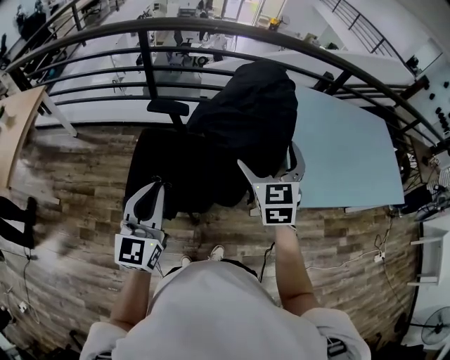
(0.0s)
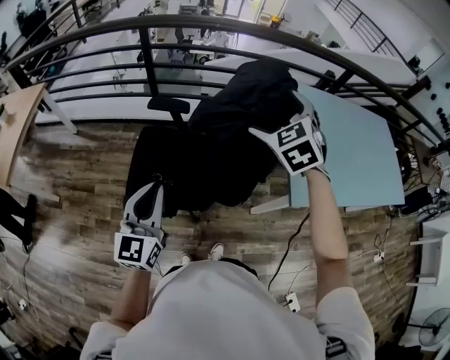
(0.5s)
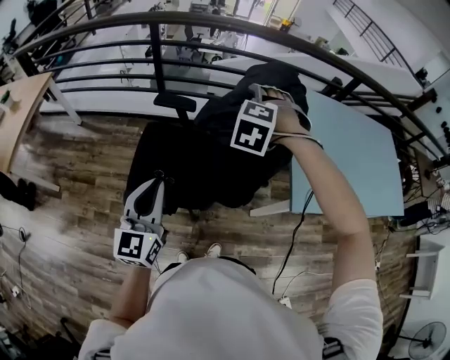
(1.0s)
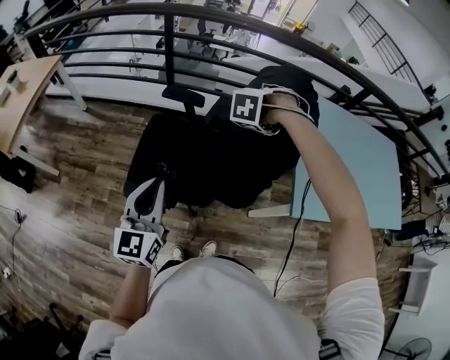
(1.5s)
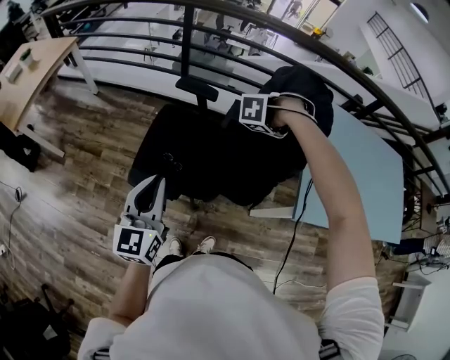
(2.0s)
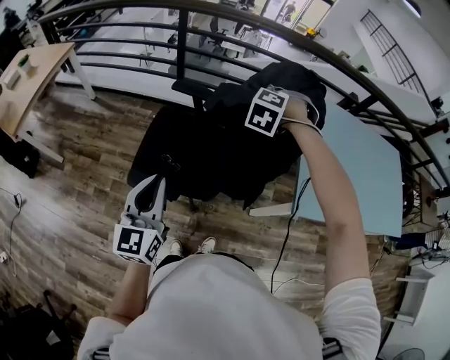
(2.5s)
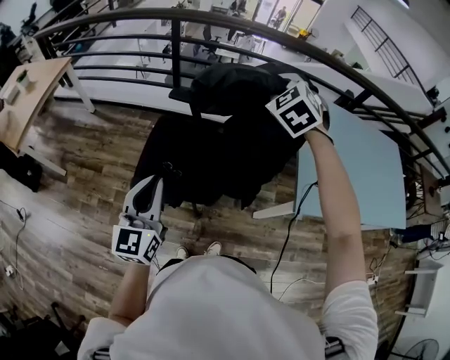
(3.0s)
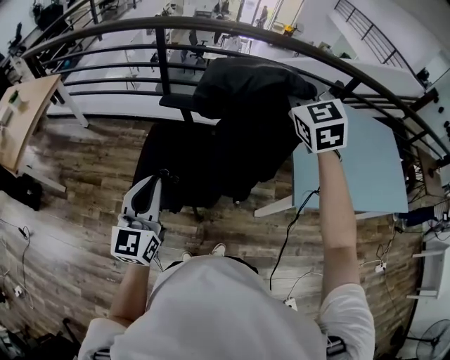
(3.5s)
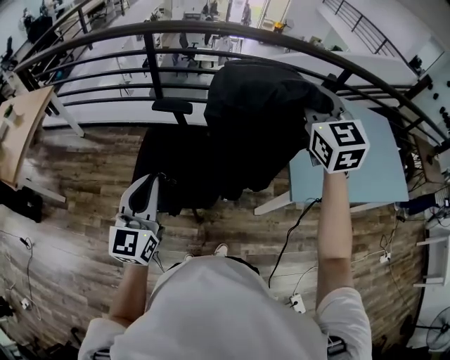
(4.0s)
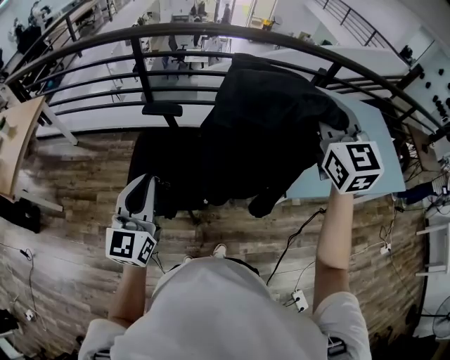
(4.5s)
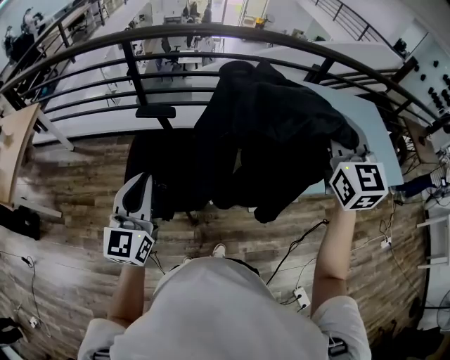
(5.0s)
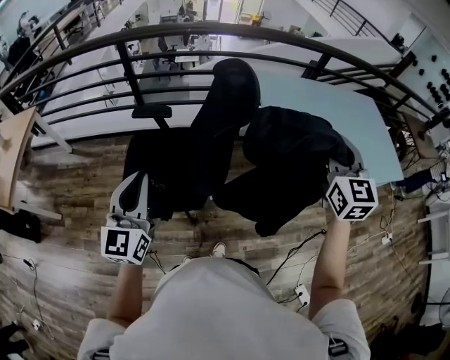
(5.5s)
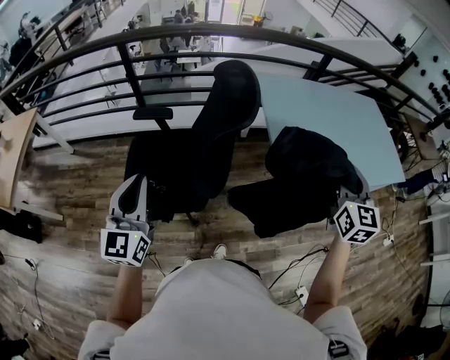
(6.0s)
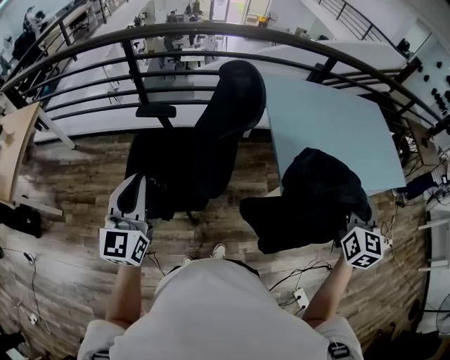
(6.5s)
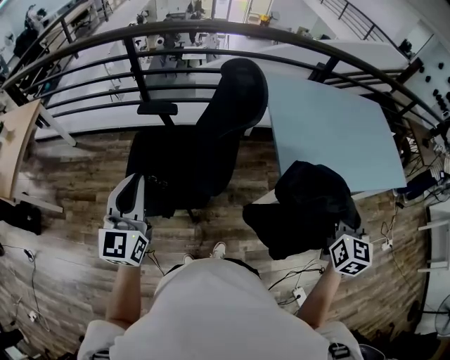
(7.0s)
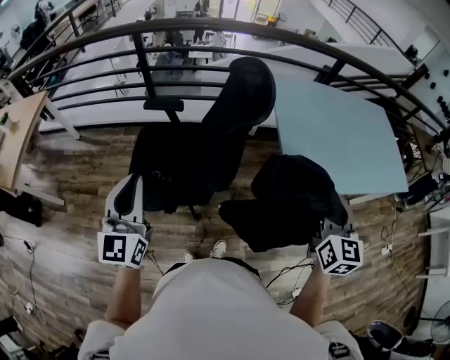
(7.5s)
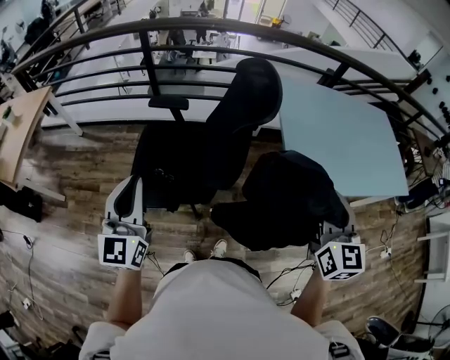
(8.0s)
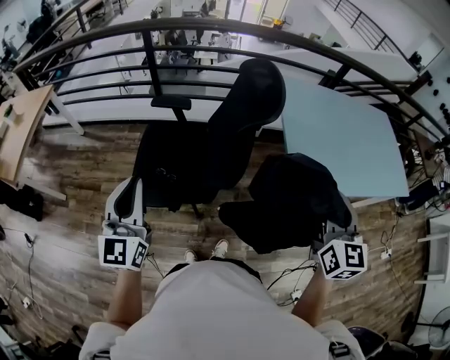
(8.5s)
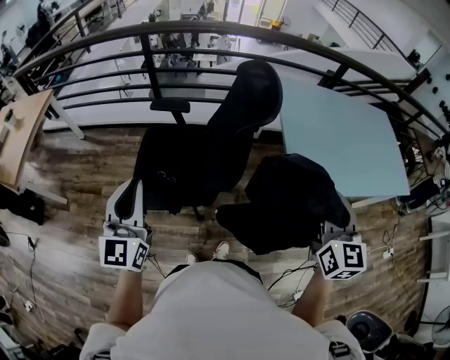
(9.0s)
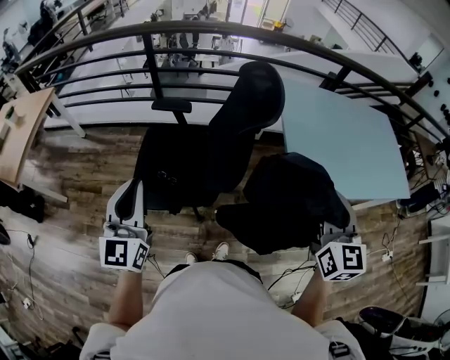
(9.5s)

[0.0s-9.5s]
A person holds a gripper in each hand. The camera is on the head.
0.0s to 2.0s: The right gripper ends up approximately 15 cm from where it was, tips its fingers downward by about 50 degrees, and closes.
2.0s to 4.0s: The right gripper shifts about 30 cm upward, angles its fingers upward, by approximately 60 degrees, and closes its fingers. Meanwhile the left gripper is displaced upward by approximately 5 cm.
4.0s to 5.5s: The right gripper is displaced to the right and backward by some 20 cm.
5.5s to 7.5s: The right gripper goes roughly 15 cm backward and downward, and travels to the right and back again, some 10 cm each way.
7.5s to 9.5s: The right gripper shifts by about 5 cm.

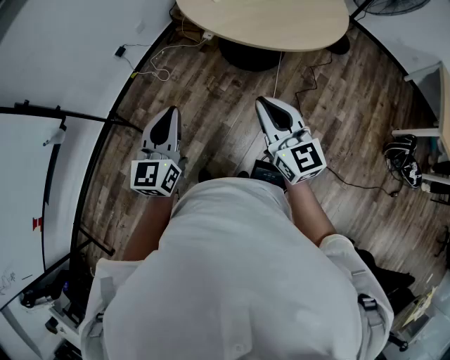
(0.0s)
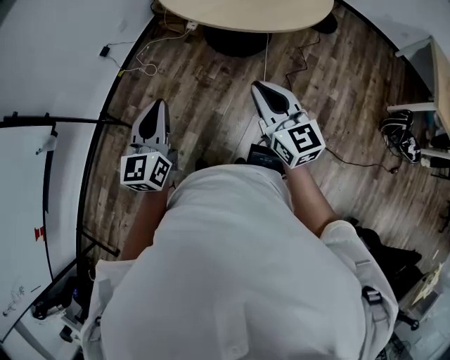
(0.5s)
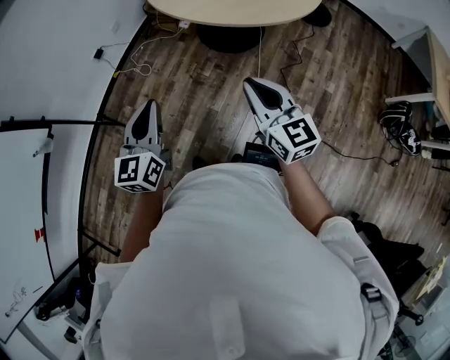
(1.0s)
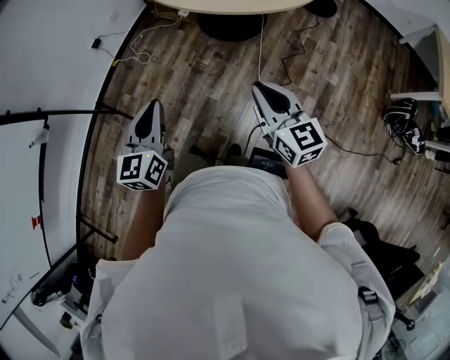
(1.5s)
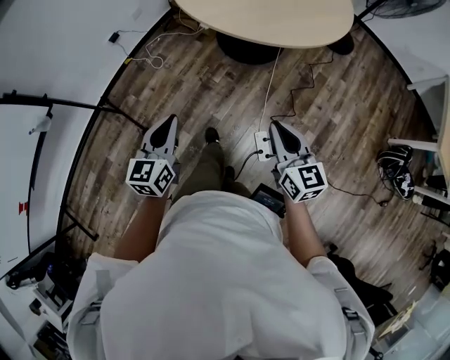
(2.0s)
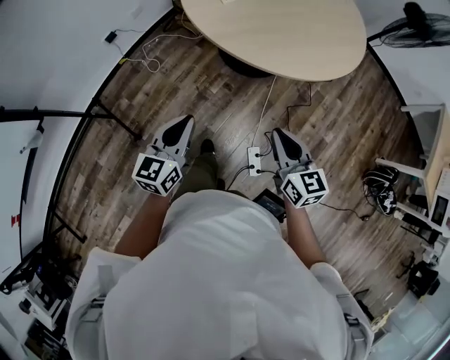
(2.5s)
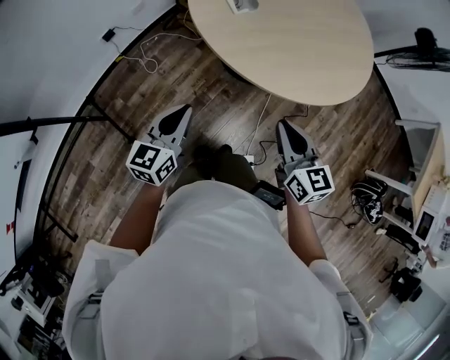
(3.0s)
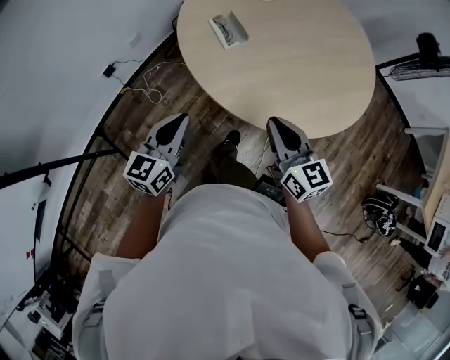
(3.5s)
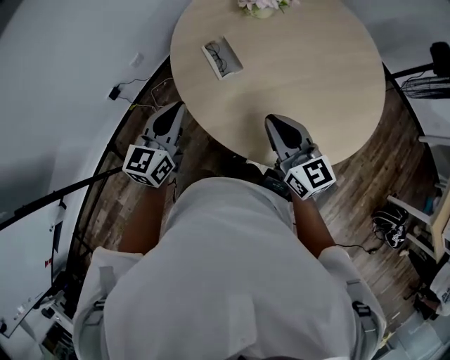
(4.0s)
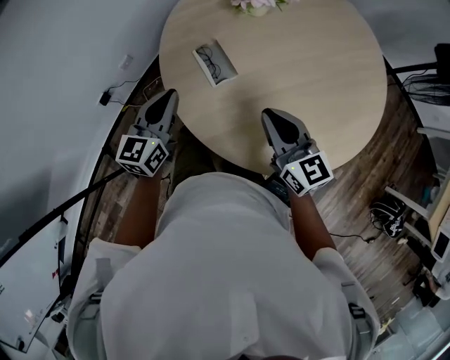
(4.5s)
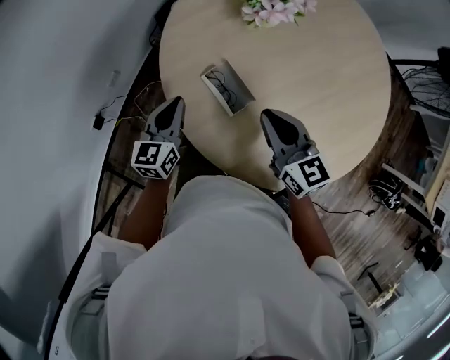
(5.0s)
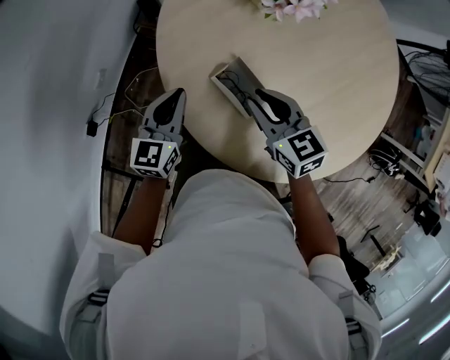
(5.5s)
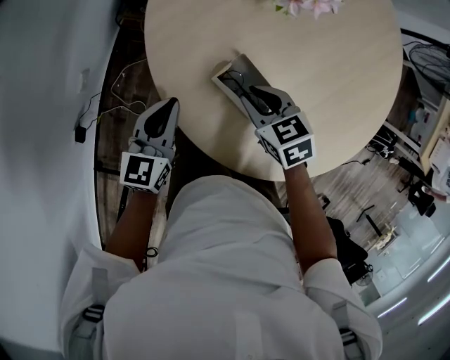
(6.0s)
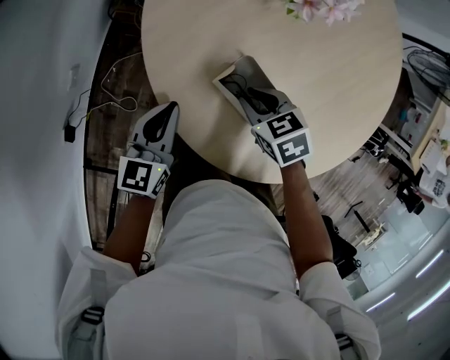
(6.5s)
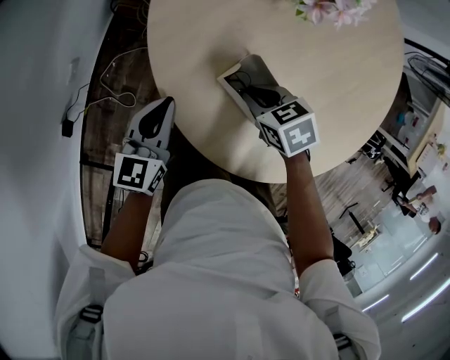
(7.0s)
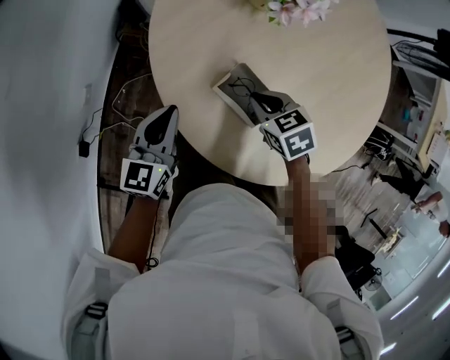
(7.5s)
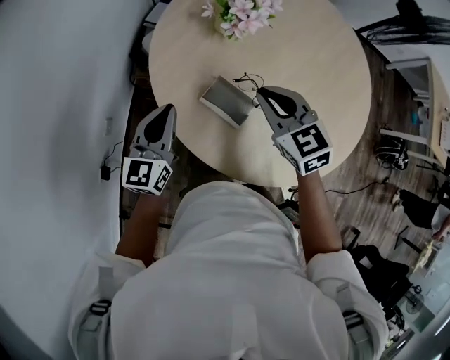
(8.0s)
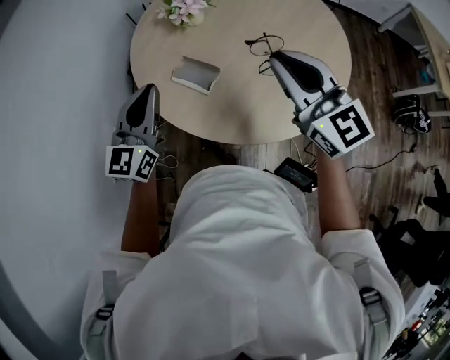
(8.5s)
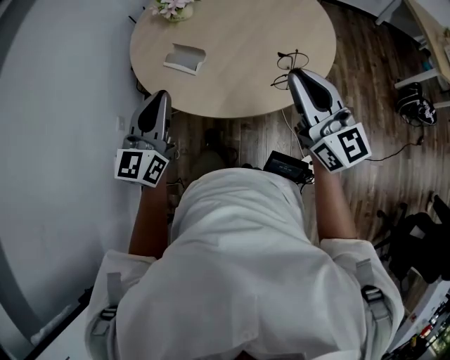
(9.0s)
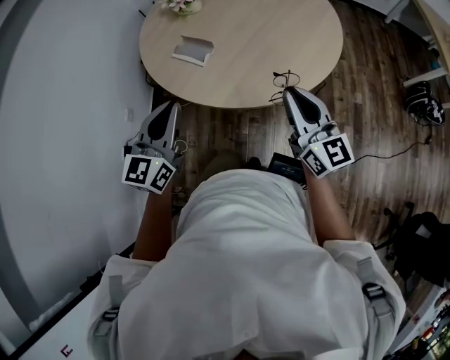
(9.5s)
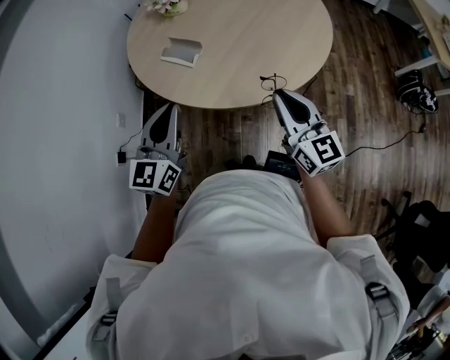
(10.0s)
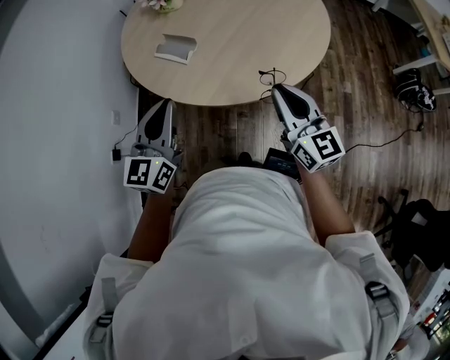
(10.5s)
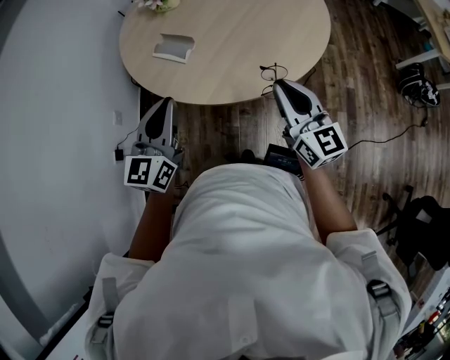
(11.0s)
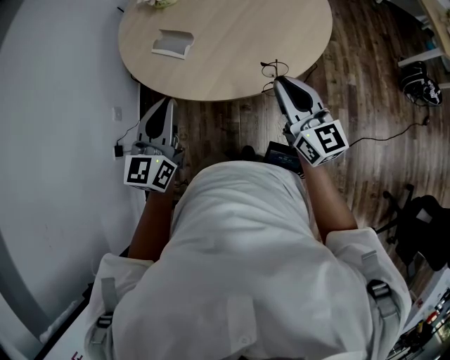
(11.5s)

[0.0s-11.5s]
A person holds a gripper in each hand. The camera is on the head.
0.0s to 2.0s: The left gripper travels downward and to the right by roughly 10 cm, while the right gripper moves to the right and downward, some 15 cm.
2.0s to 4.0s: The pair of grippers is taken forward, some 50 cm.
4.0s to 6.0s: The left gripper is displaced forward and downward by some 35 cm, and rotates some 20 degrees. Meanwhile the right gripper heads forward, downward and to the left, covering about 35 cm, and points its fingers roughly 50 degrees further downward.
6.0s to 7.5s: The grippers stay close to where they were, moving slightly.
7.5s to 9.5s: Both grippers move backward, upward and to the right, some 50 cm. The left gripper swivels roughly 30 degrees, while the right gripper points its fingers some 70 degrees further upward.
9.5s to 11.5s: The right gripper moves roughly 5 cm.

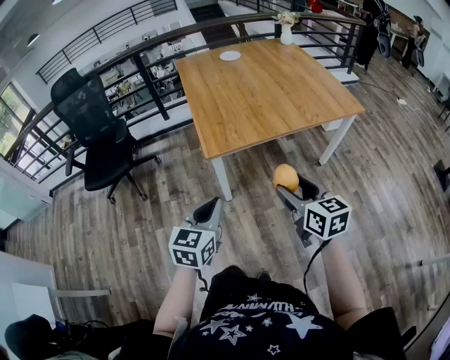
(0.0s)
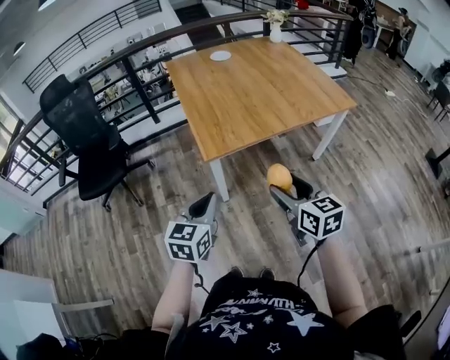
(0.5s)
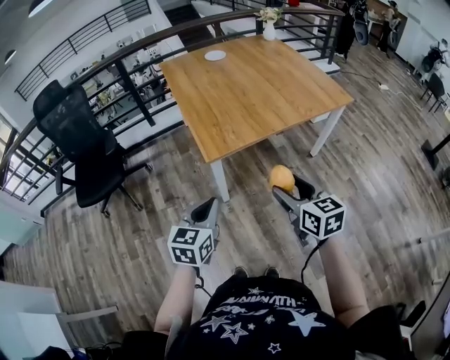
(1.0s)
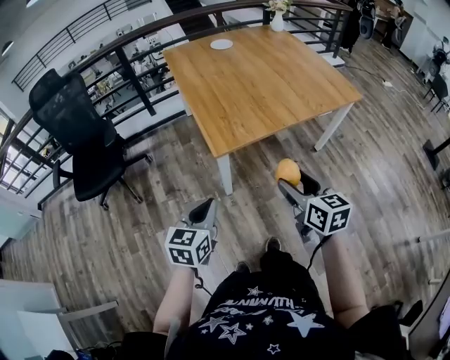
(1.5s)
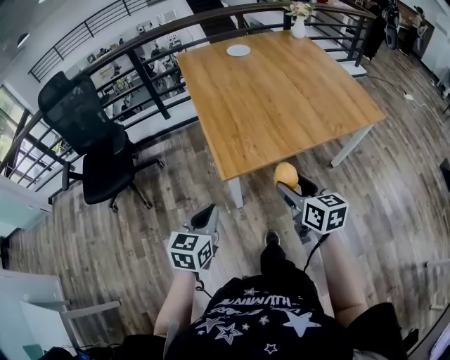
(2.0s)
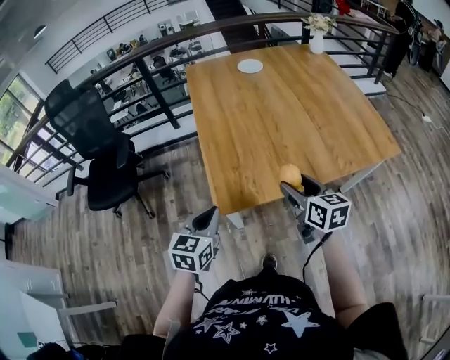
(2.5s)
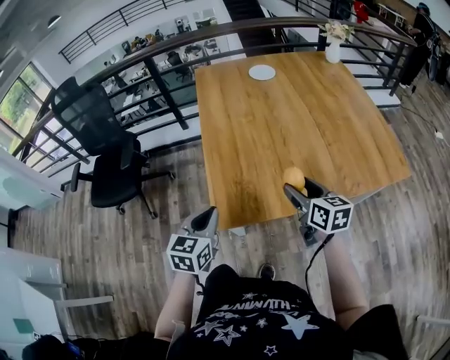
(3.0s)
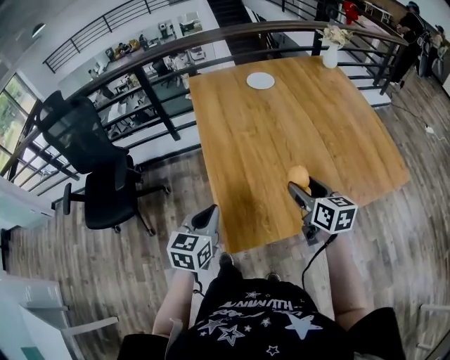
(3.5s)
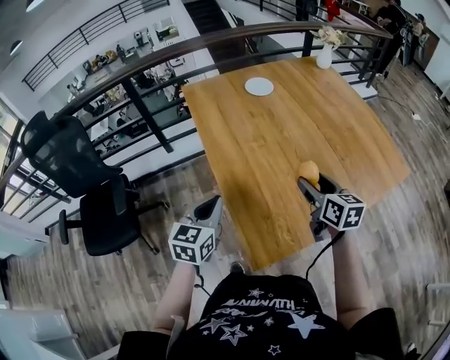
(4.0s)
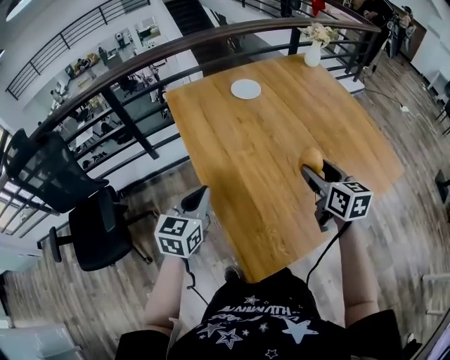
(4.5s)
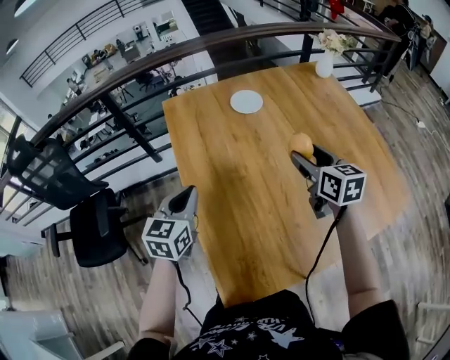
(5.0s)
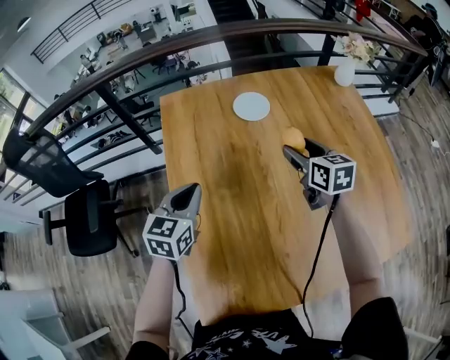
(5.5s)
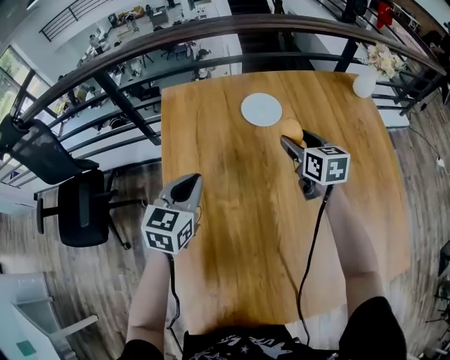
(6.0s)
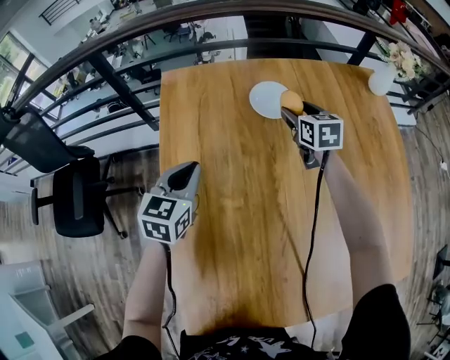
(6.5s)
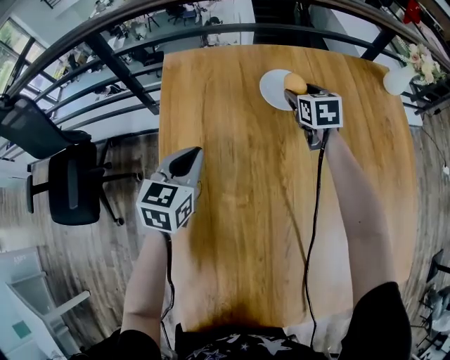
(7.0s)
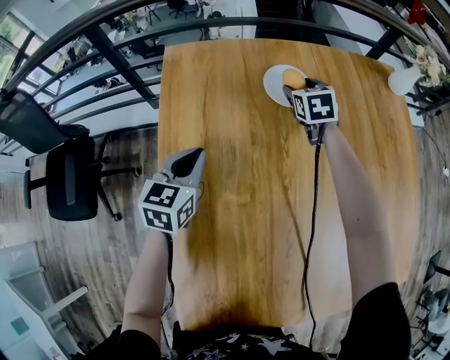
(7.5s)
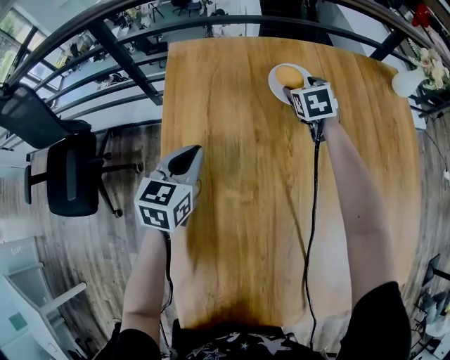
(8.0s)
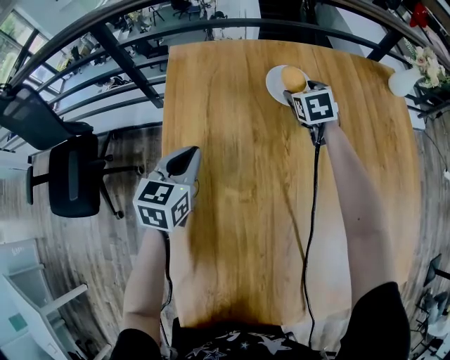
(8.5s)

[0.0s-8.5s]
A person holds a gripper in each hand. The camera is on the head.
0.0s to 2.0s: The right gripper shifts approximately 20 cm forward and to the left, while the left gripper heads forward, to the left and downward, covering approximately 20 cm.
2.0s to 4.0s: Both grippers travel together forward, approximately 35 cm.
4.0s to 6.5s: The left gripper heads forward, covering roughly 35 cm. The right gripper heads forward, covering some 60 cm, and changes its angle by roughly 30 degrees.
6.5s to 8.5s: The left gripper ends up roughly 5 cm from where it was. The right gripper travels downward by roughly 5 cm, and rotates about 20 degrees.
